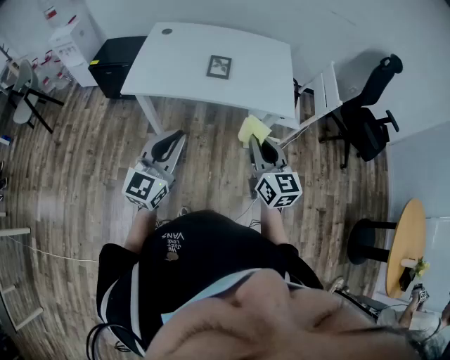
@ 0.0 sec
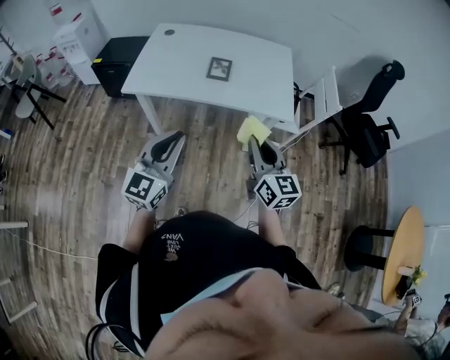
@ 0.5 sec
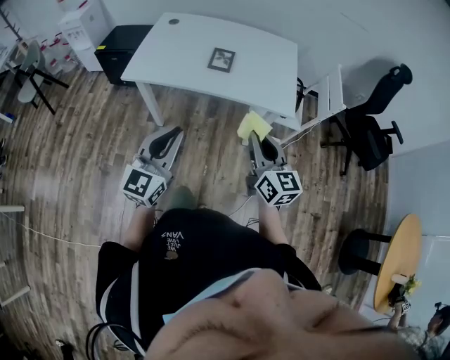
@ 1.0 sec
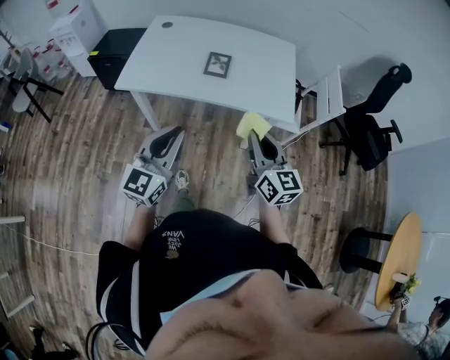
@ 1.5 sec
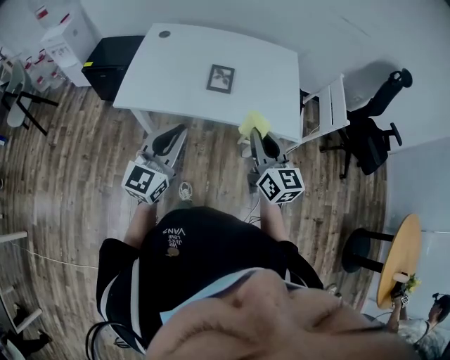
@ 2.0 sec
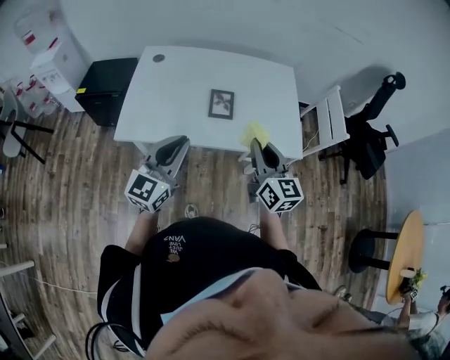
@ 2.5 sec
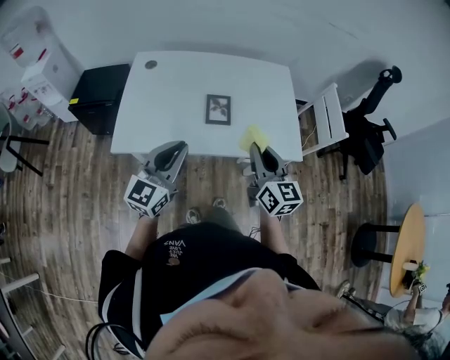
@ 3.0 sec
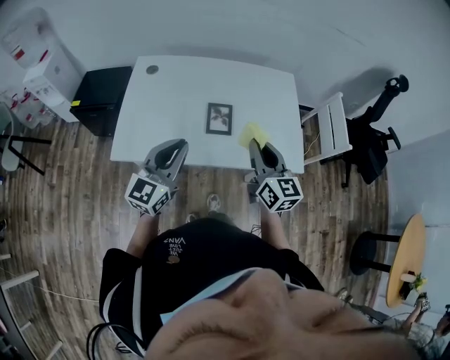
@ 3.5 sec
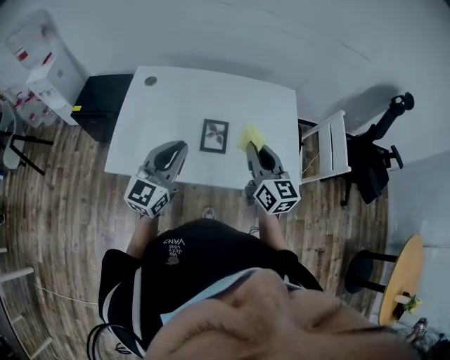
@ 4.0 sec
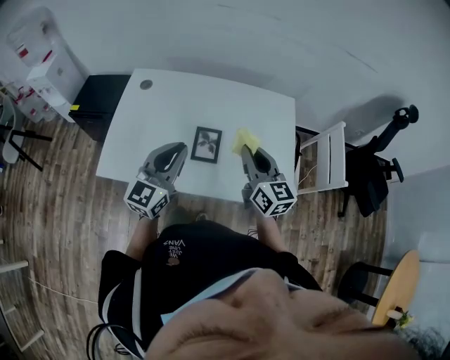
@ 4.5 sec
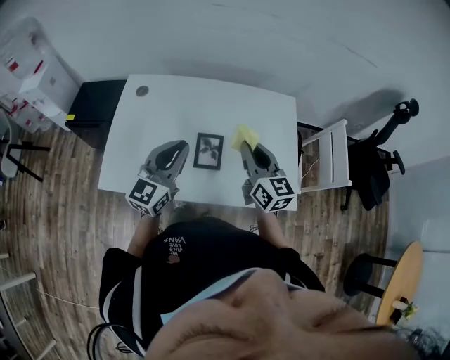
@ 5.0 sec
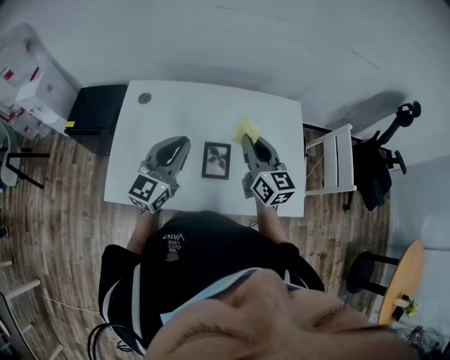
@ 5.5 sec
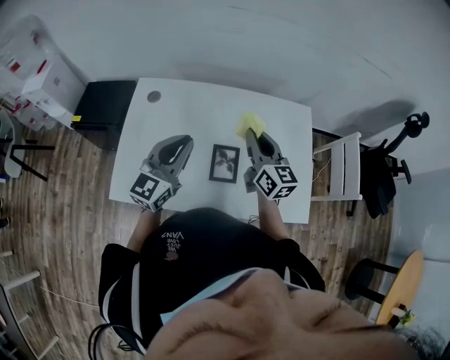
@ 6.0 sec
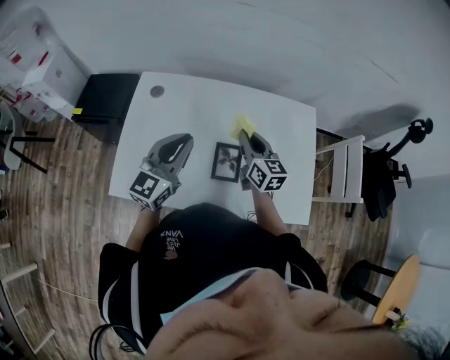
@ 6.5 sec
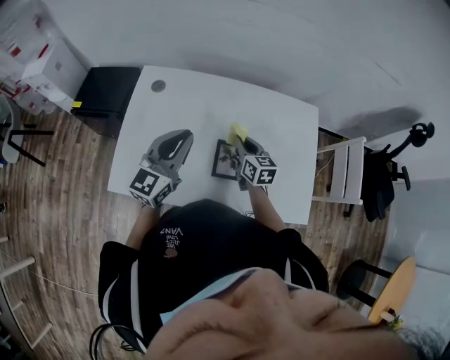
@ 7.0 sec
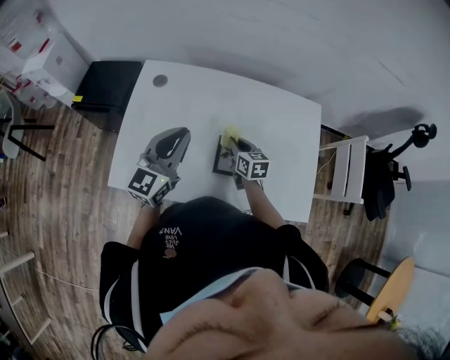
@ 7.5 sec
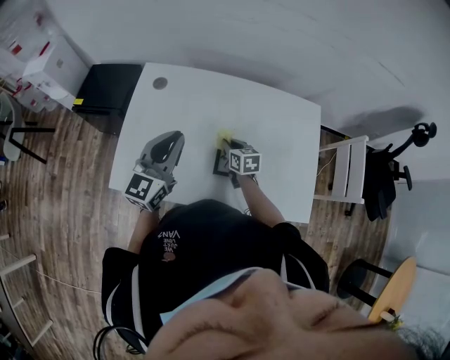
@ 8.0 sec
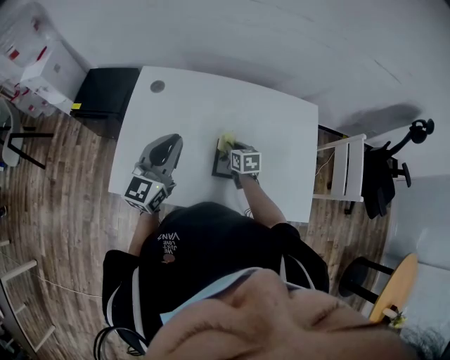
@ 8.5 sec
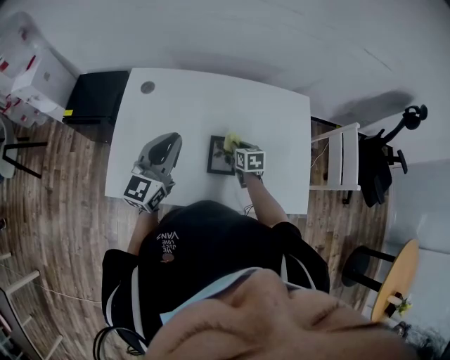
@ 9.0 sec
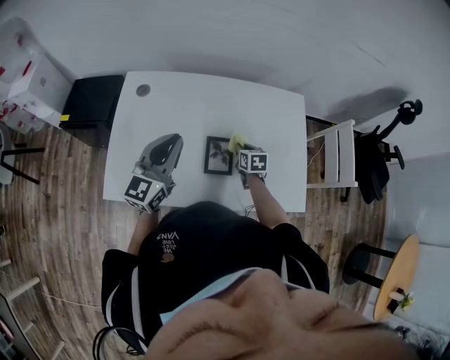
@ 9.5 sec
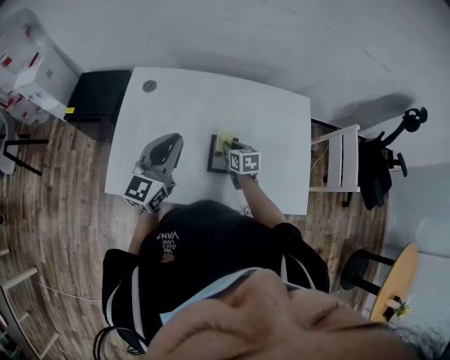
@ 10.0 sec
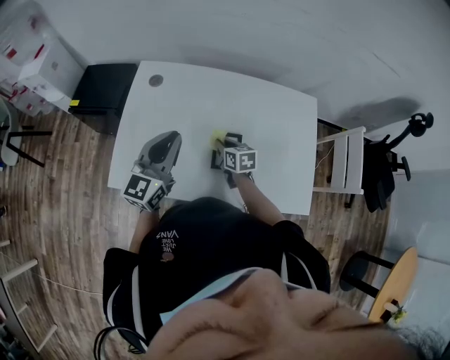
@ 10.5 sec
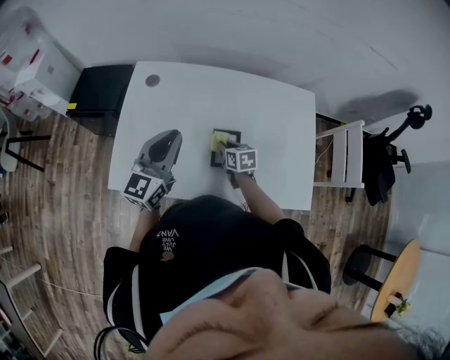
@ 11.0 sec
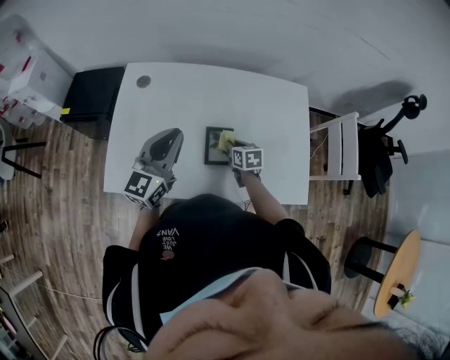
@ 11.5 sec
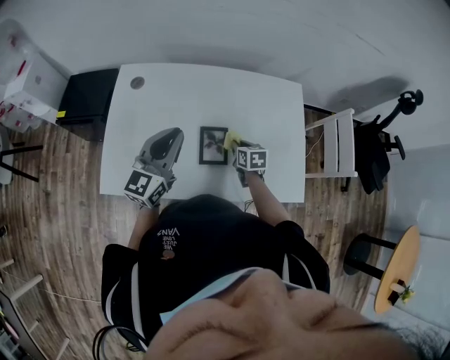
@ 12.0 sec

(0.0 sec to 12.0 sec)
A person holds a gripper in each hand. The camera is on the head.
0.0 sec - 2.0 sec: The grippers both shift forward by roughly 15 cm.
2.0 sec - 4.0 sec: The grippers both shift forward by approximately 20 cm.
4.0 sec - 6.0 sec: The two grippers go some 15 cm forward.
6.0 sec - 8.0 sec: The left gripper changes place by some 5 cm. Meanwhile the right gripper moves downward, roughly 25 cm, and points its fingers some 30 degrees further downward.
10.0 sec - 12.0 sec: The right gripper travels to the right by some 5 cm.

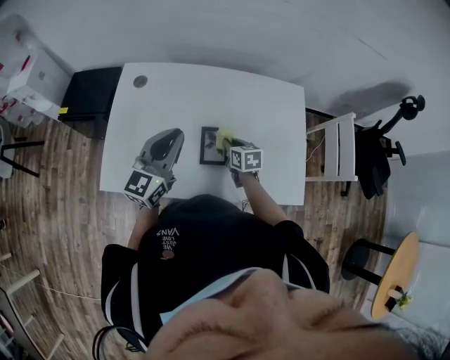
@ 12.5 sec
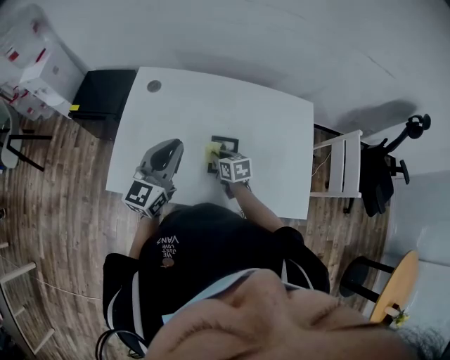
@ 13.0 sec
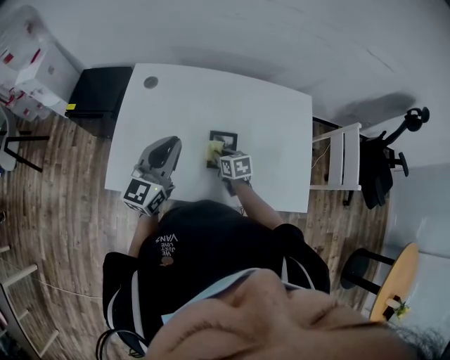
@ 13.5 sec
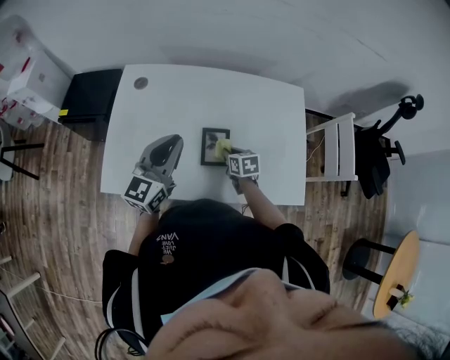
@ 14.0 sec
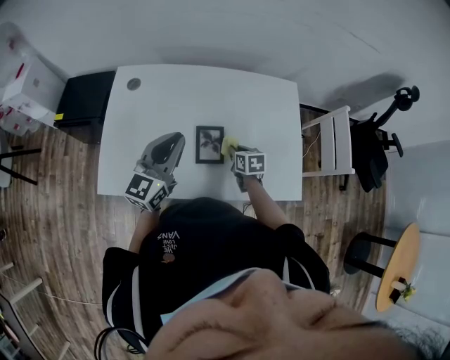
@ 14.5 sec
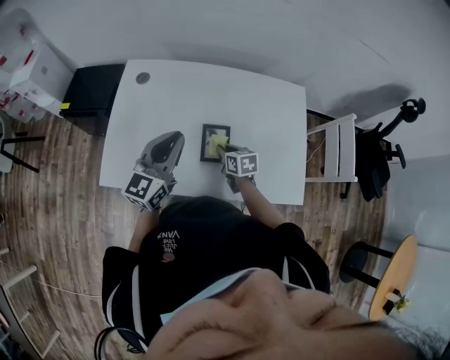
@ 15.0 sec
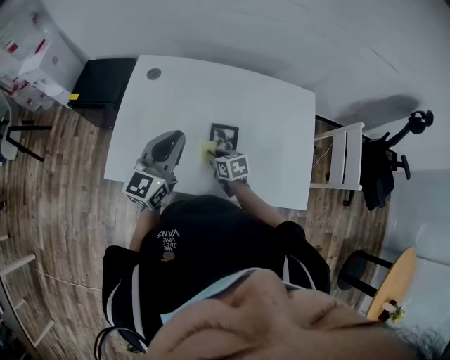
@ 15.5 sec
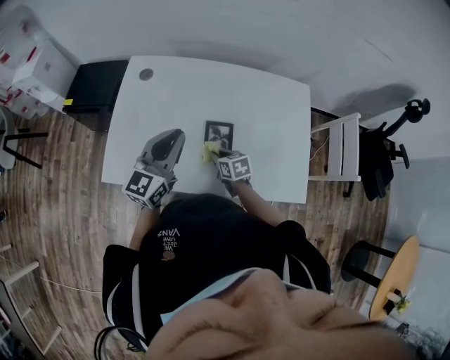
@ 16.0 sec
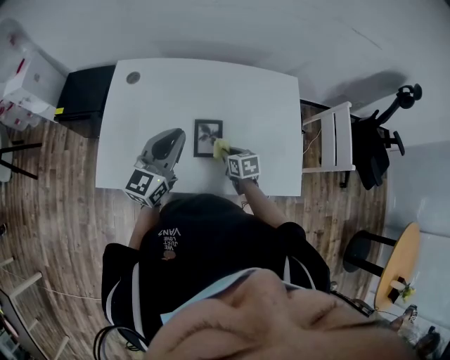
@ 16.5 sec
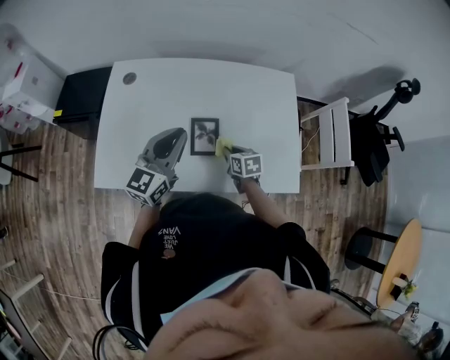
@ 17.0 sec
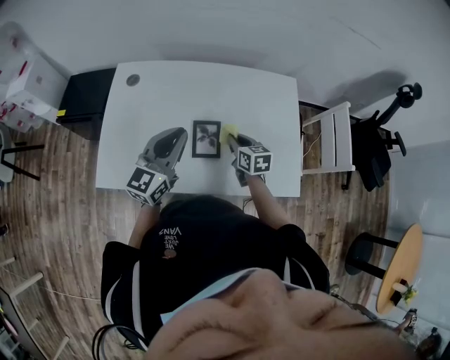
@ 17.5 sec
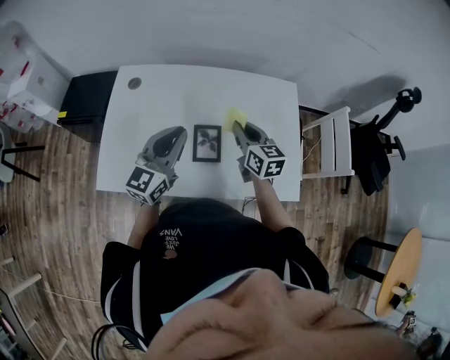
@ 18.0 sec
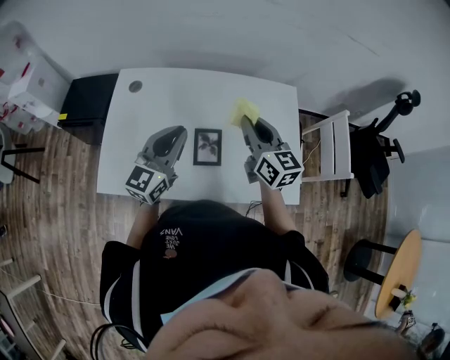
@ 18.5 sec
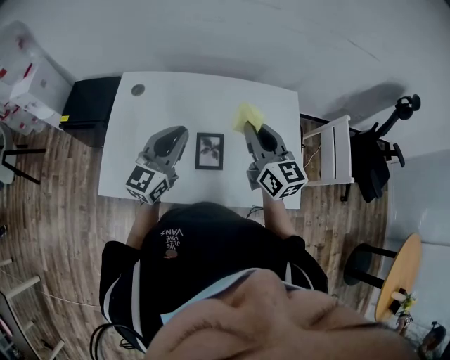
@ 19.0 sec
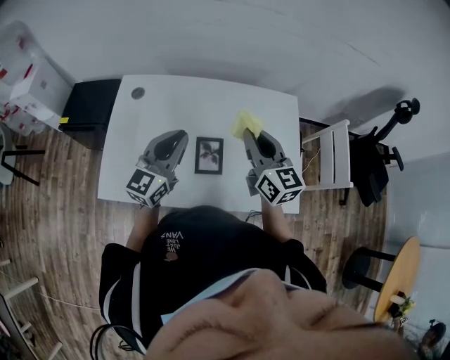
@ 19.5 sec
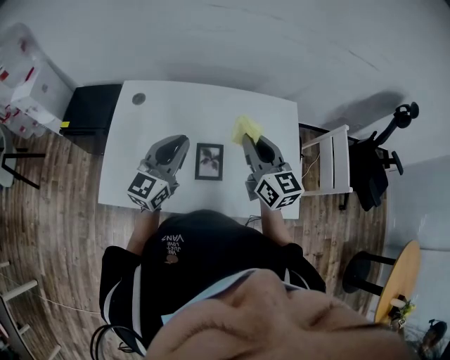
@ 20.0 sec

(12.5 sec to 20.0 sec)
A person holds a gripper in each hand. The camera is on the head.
12.5 sec - 14.5 sec: The right gripper travels to the left and back again, about 10 cm each way.
14.5 sec - 16.5 sec: The right gripper moves about 15 cm to the left and comes back.
16.5 sec - 18.0 sec: The right gripper is displaced upward by approximately 20 cm, and tips its fingers upward by about 30 degrees.
18.0 sec - 20.0 sec: The right gripper is displaced upward by approximately 10 cm.

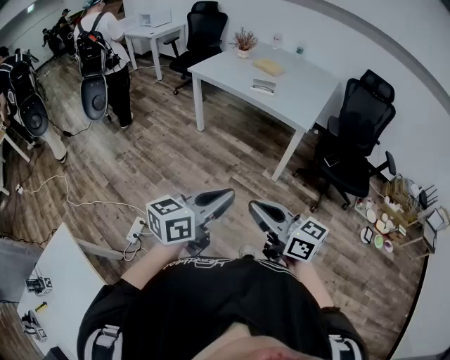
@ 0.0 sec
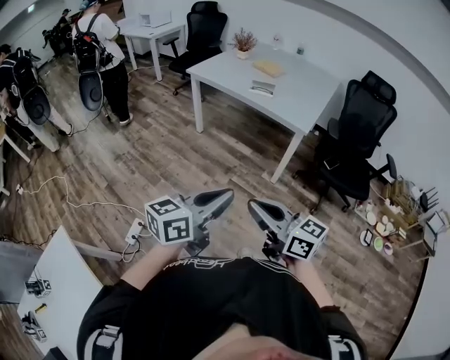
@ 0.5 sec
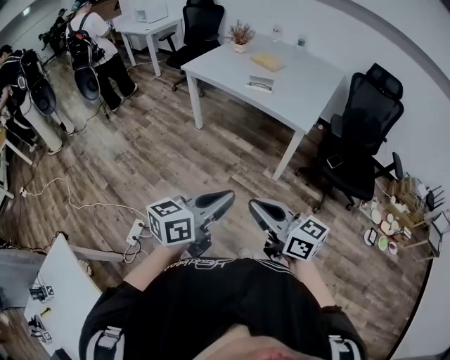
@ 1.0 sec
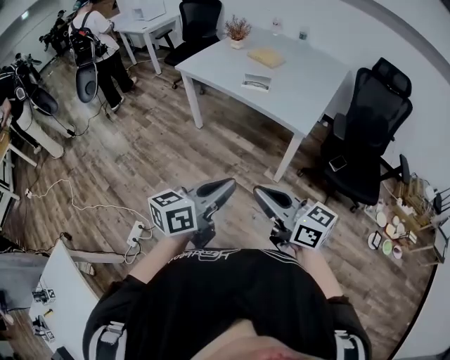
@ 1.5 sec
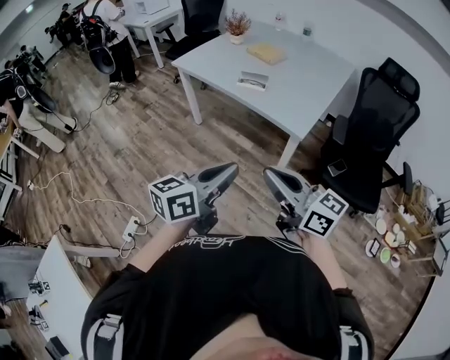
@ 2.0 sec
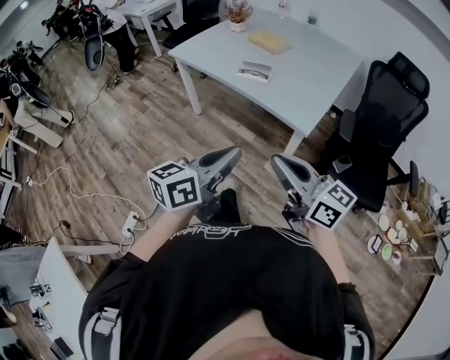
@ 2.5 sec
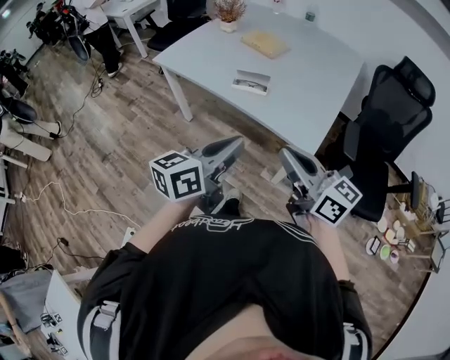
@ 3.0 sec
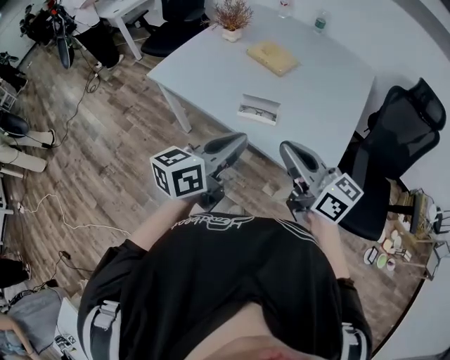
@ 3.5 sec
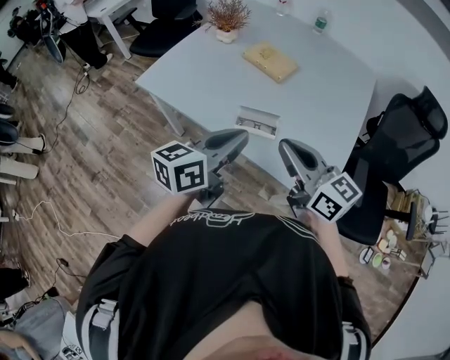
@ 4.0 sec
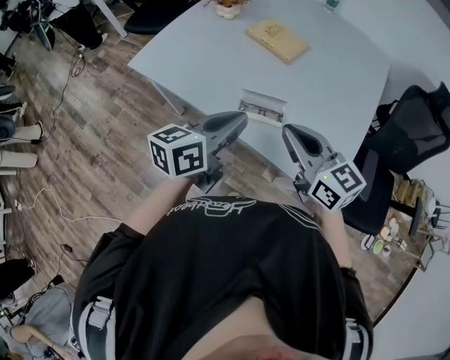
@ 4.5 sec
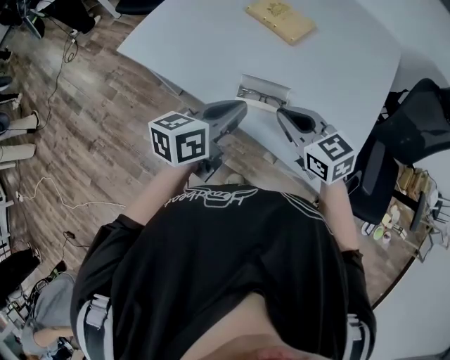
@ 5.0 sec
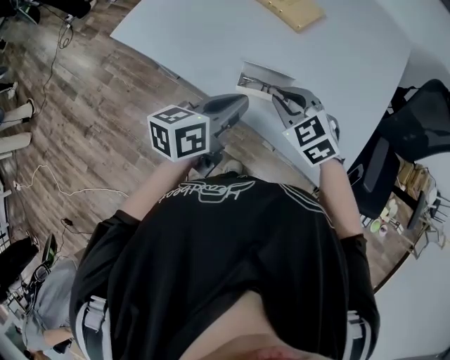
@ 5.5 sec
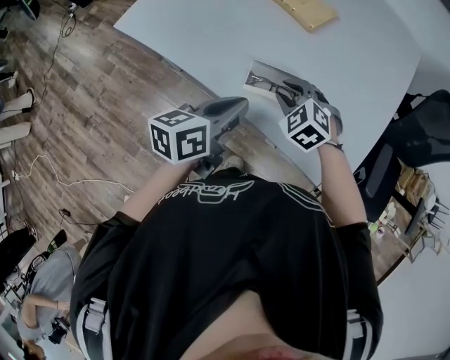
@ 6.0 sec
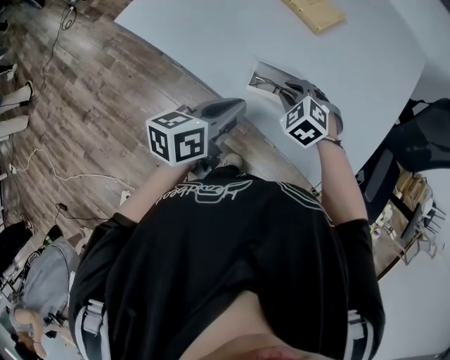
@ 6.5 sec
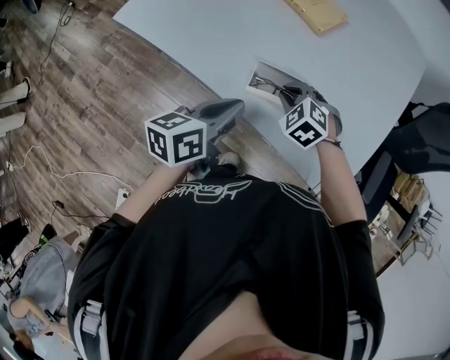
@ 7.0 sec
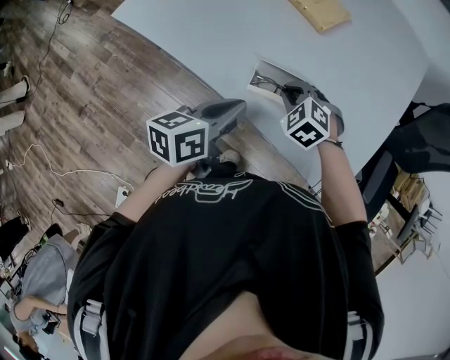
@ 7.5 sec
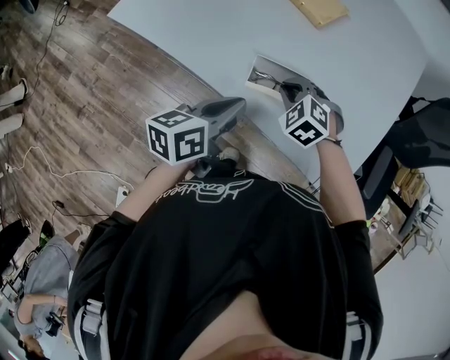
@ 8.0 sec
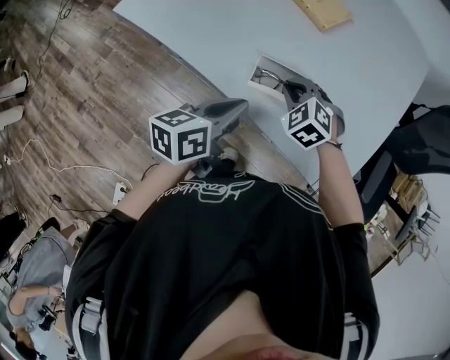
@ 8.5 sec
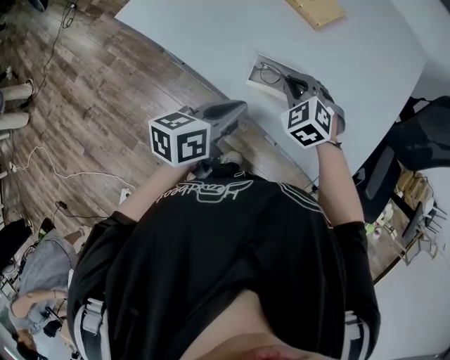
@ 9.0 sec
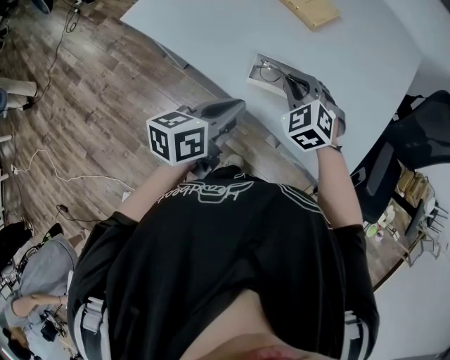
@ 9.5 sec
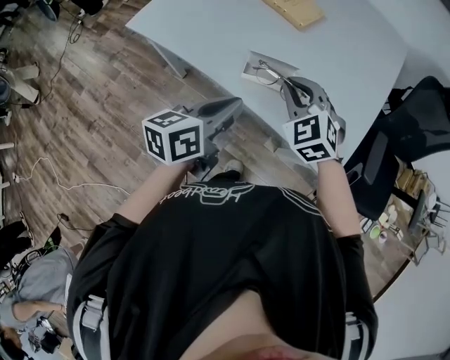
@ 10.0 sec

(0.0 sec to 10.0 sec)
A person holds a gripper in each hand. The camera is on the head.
0.0 sec - 2.0 sec: Both grippers travel together forward and to the right, about 30 cm.
2.0 sec - 4.0 sec: The two grippers travel together, forward, some 50 cm.
4.0 sec - 6.0 sec: The right gripper heads downward and forward, covering about 30 cm, and tips its fingers downward by some 50 degrees, while the left gripper shifts roughly 15 cm downward and forward.
6.0 sec - 8.0 sec: The grippers stay close to where they were, moving slightly.
8.0 sec - 10.0 sec: The left gripper moves upward and backward, about 10 cm. The right gripper is displaced upward and backward by about 15 cm, and swivels about 30 degrees.
